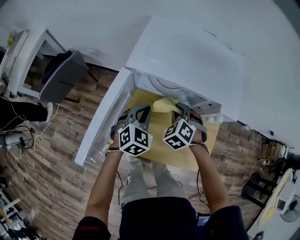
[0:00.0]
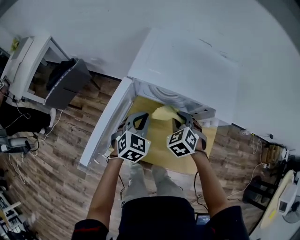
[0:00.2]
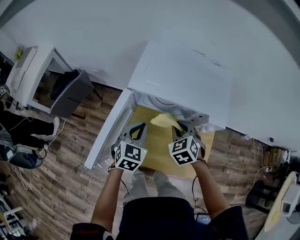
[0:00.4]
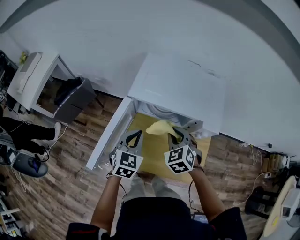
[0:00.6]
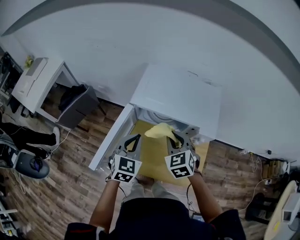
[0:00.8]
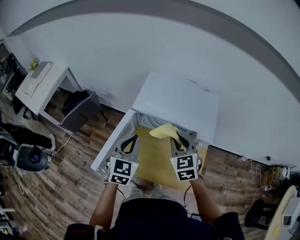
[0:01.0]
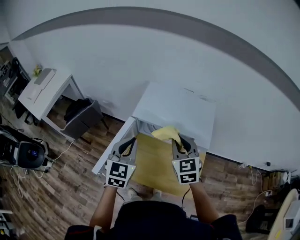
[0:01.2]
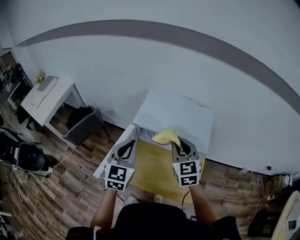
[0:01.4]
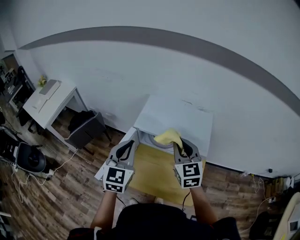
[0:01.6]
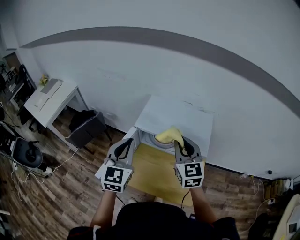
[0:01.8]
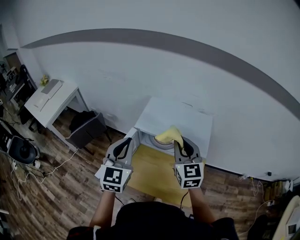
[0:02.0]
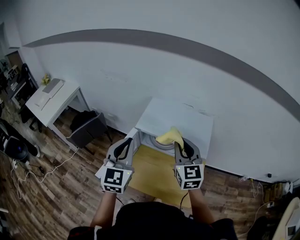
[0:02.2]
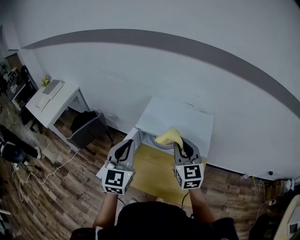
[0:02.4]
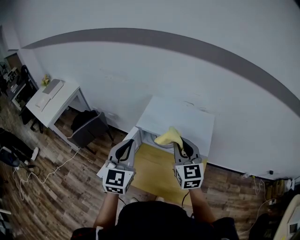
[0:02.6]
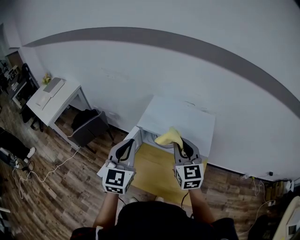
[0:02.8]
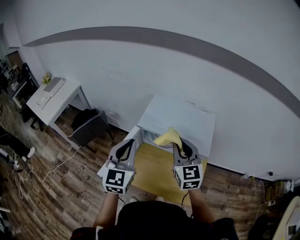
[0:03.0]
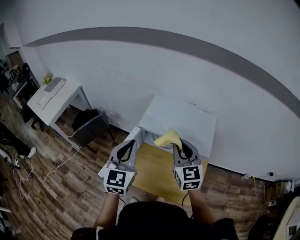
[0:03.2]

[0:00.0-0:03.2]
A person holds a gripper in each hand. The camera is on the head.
0:00.0 to 0:01.6: Both grippers move upward, roughly 30 cm. The left gripper rotates approximately 30 degrees; the right gripper angles its fingers upward, by some 40 degrees.
0:01.6 to 0:03.2: The grippers make only small movements.

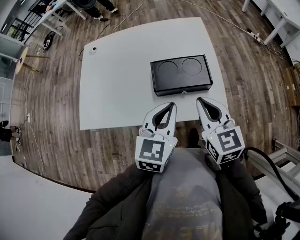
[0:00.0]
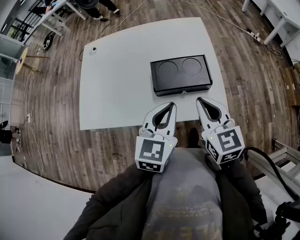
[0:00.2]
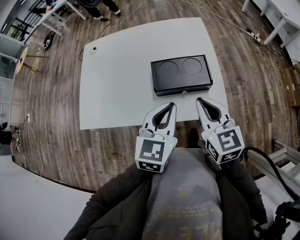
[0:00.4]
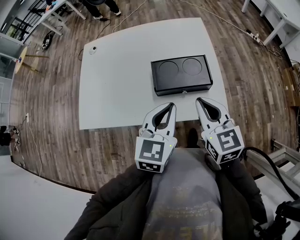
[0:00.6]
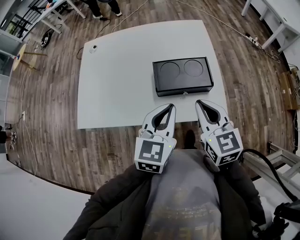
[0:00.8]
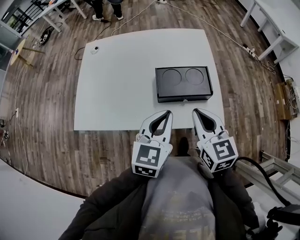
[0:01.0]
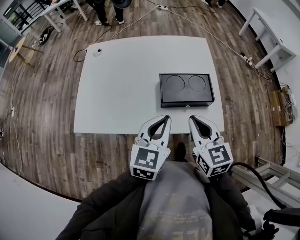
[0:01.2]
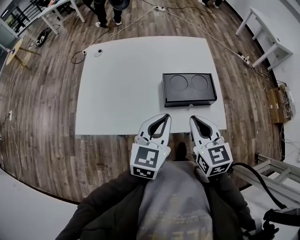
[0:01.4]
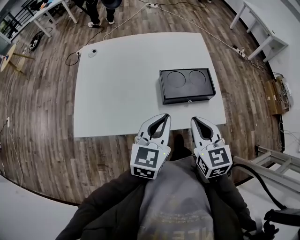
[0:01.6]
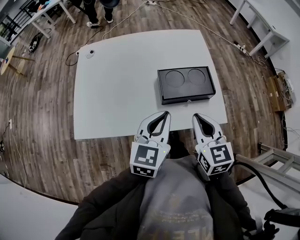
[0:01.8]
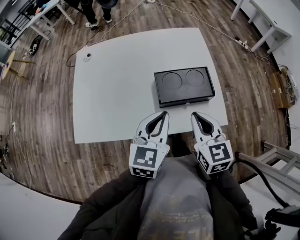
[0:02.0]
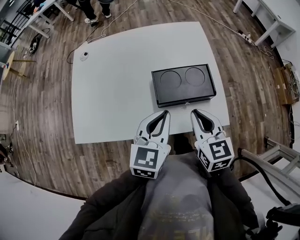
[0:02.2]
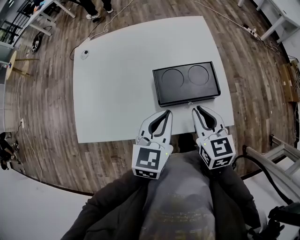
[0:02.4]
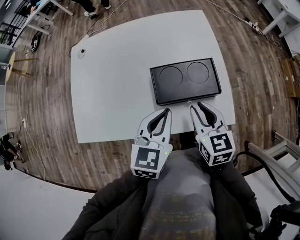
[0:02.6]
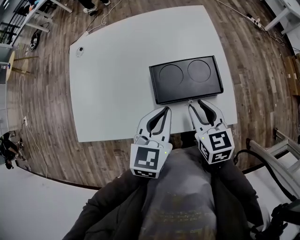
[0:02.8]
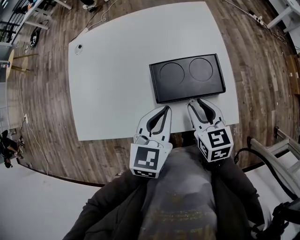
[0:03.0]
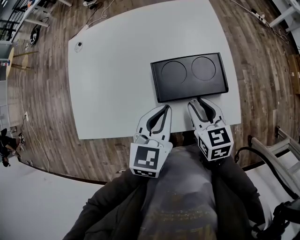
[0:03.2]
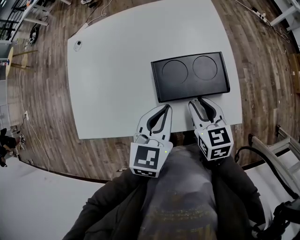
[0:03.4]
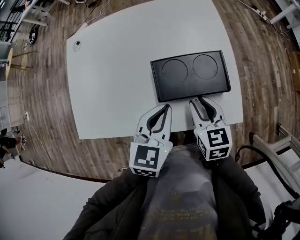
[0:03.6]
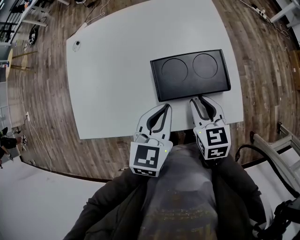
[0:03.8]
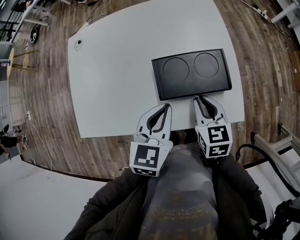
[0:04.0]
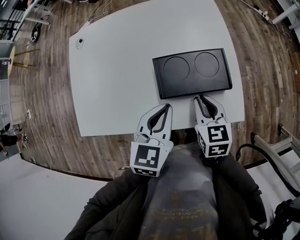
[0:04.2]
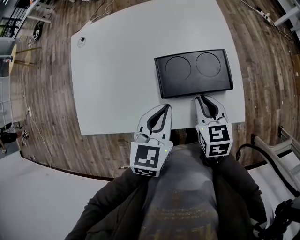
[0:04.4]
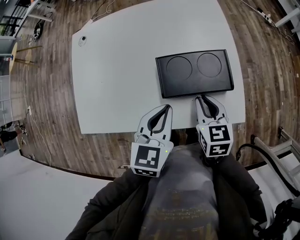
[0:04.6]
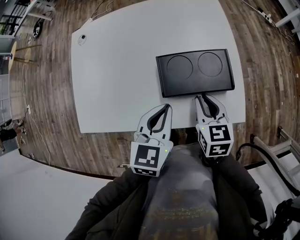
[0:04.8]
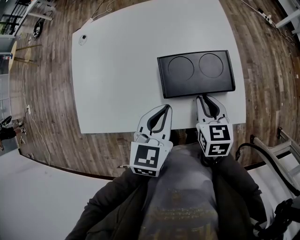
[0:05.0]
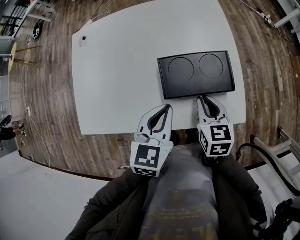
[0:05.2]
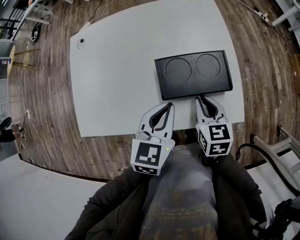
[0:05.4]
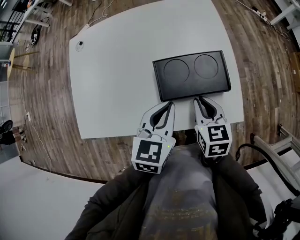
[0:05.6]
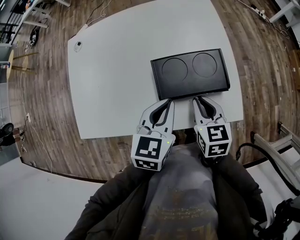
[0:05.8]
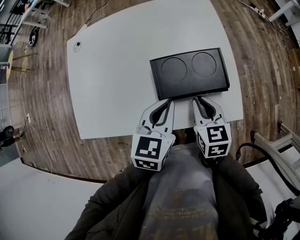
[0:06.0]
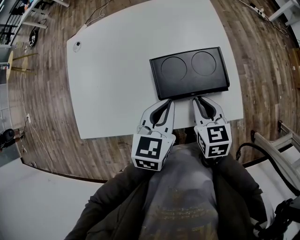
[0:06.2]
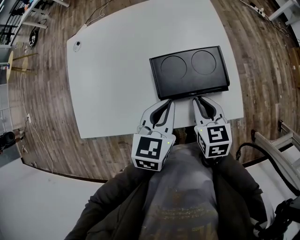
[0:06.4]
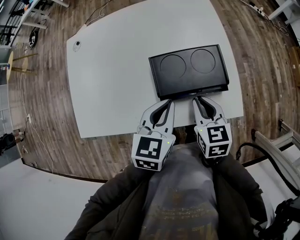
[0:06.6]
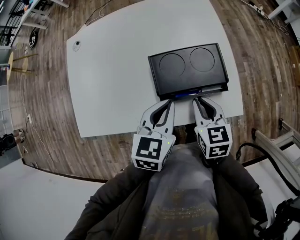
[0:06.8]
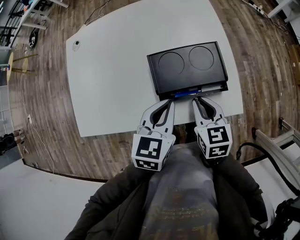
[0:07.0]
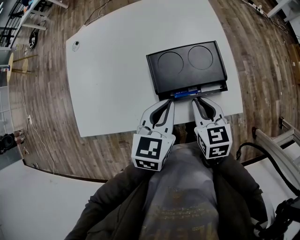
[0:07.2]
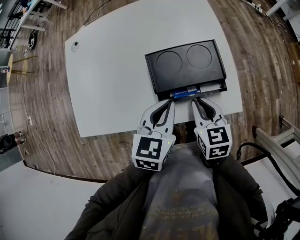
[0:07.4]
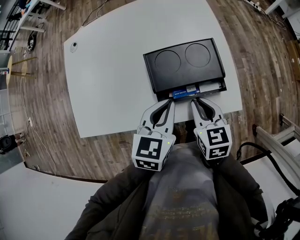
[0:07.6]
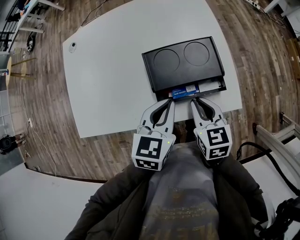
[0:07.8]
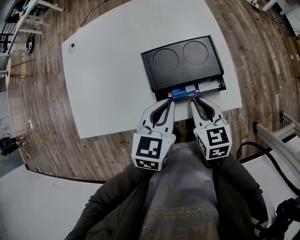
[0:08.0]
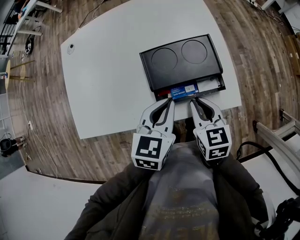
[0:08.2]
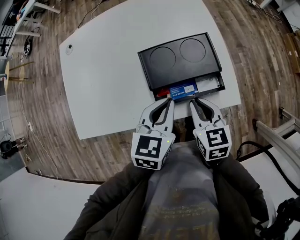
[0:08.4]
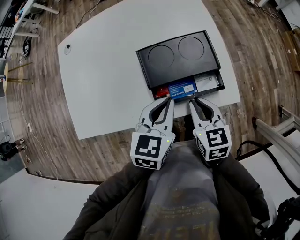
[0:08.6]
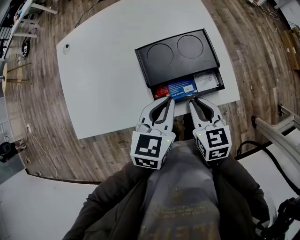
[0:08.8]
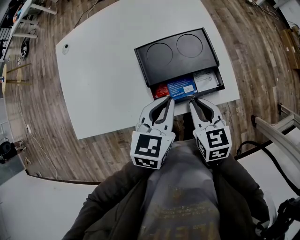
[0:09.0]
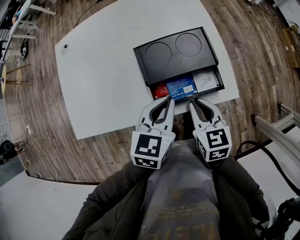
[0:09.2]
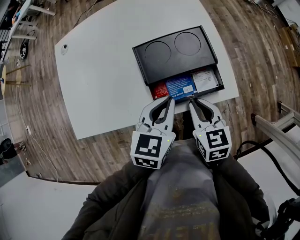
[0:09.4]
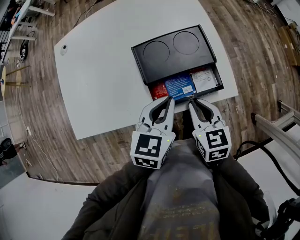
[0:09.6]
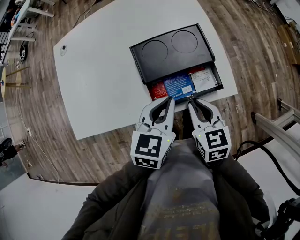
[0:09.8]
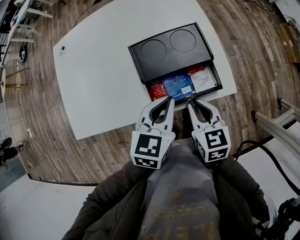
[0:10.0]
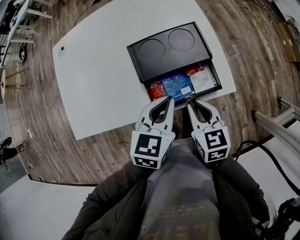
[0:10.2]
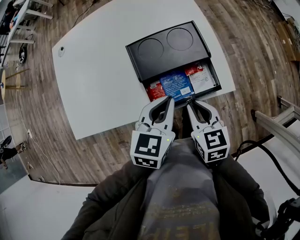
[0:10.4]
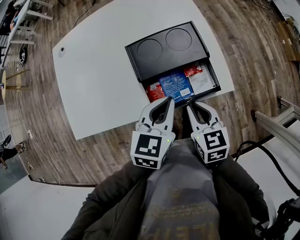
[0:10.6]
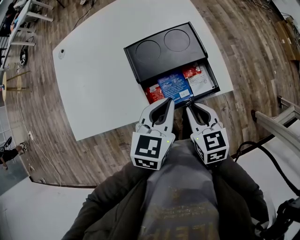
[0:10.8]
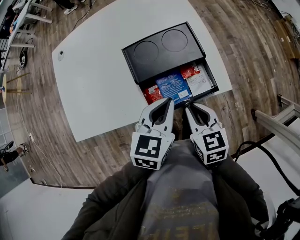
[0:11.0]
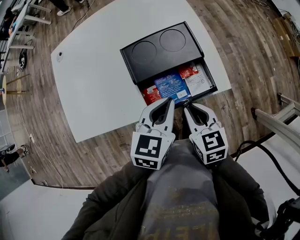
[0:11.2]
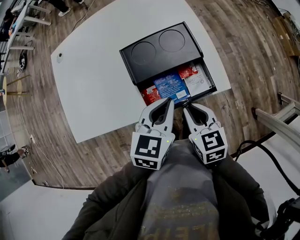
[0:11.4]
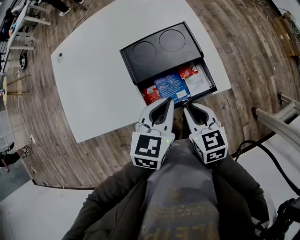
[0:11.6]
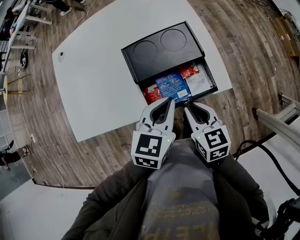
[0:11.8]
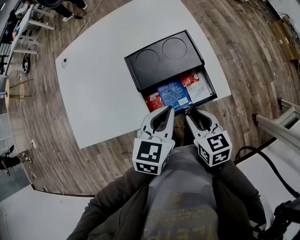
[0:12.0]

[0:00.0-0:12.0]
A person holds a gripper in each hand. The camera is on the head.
0:00.0 to 0:01.6: The grippers both shift to the left by approximately 5 cm.
0:01.6 to 0:03.0: The left gripper travels forward and downward by some 10 cm. The right gripper is displaced downward and forward by about 15 cm, and opens.
0:03.0 to 0:07.6: The grippers stay close to where they were, moving slightly.
0:07.6 to 0:10.4: The grippers make only small movements.
0:10.4 to 0:12.0: The grippers make only small movements.

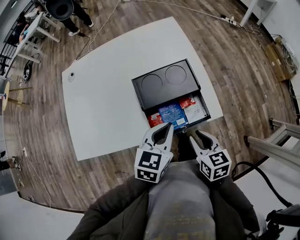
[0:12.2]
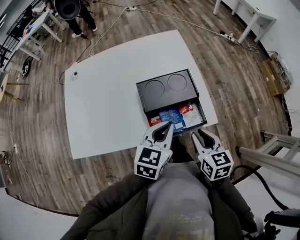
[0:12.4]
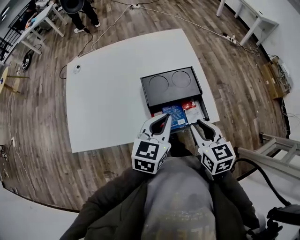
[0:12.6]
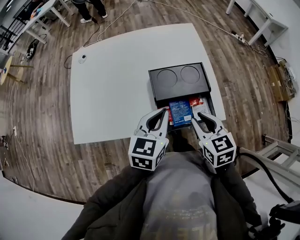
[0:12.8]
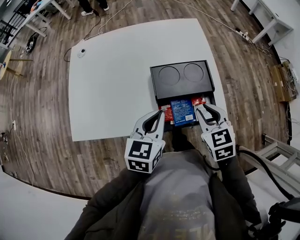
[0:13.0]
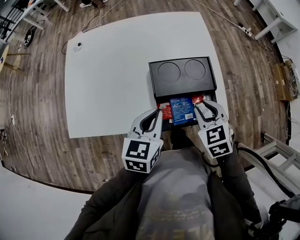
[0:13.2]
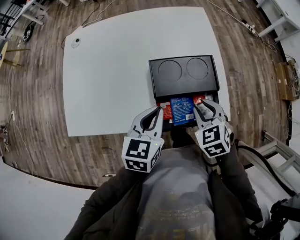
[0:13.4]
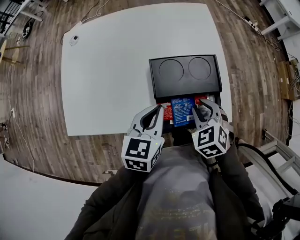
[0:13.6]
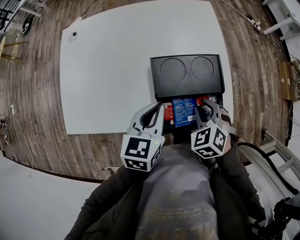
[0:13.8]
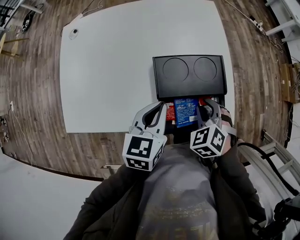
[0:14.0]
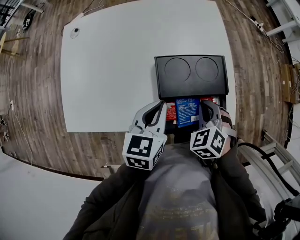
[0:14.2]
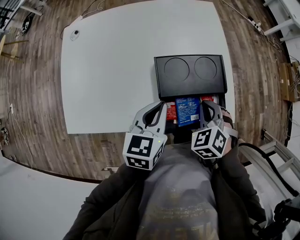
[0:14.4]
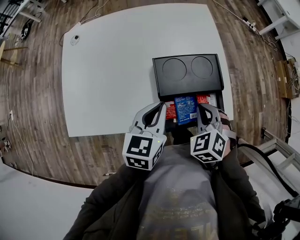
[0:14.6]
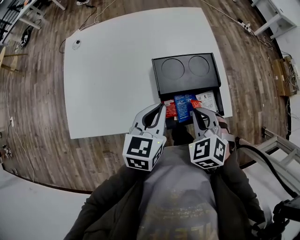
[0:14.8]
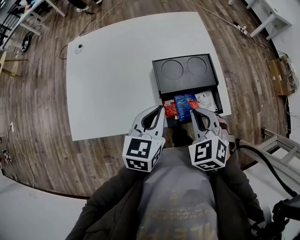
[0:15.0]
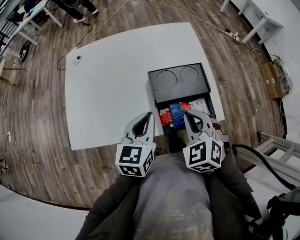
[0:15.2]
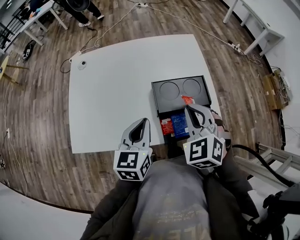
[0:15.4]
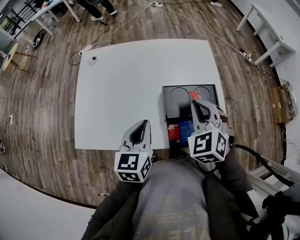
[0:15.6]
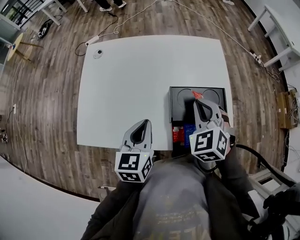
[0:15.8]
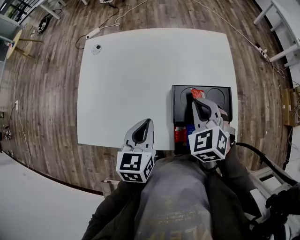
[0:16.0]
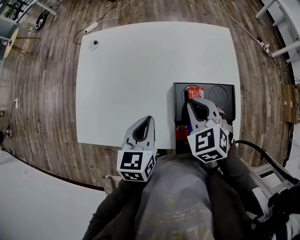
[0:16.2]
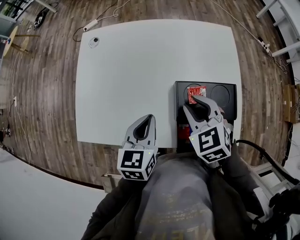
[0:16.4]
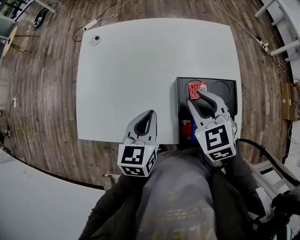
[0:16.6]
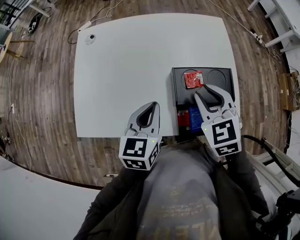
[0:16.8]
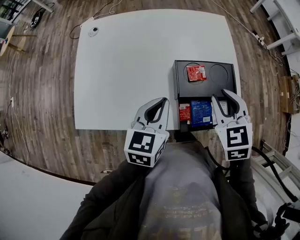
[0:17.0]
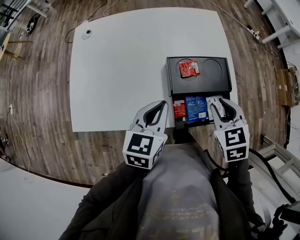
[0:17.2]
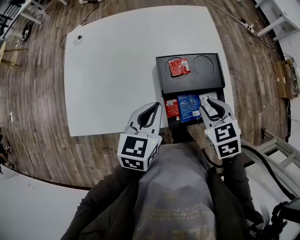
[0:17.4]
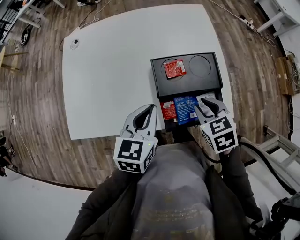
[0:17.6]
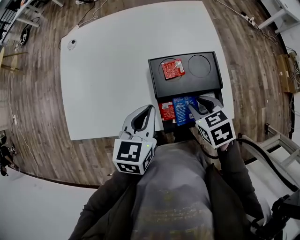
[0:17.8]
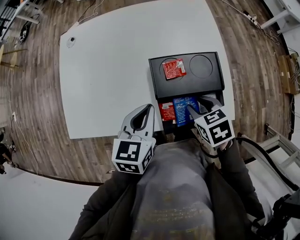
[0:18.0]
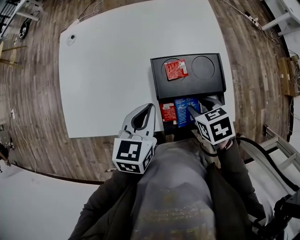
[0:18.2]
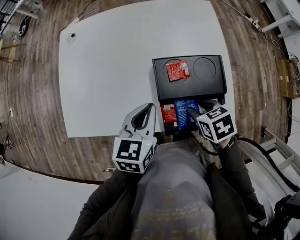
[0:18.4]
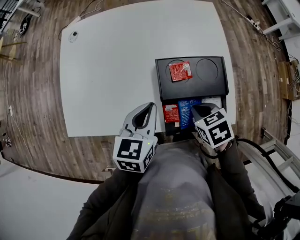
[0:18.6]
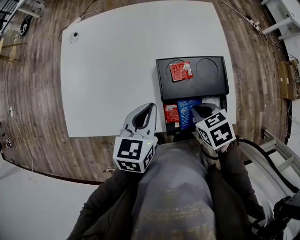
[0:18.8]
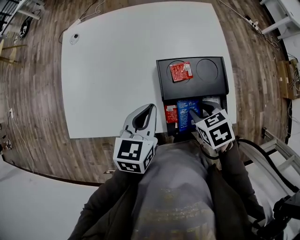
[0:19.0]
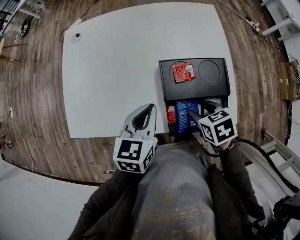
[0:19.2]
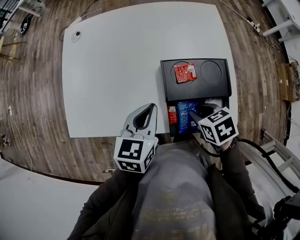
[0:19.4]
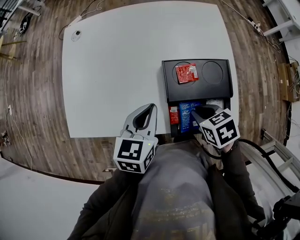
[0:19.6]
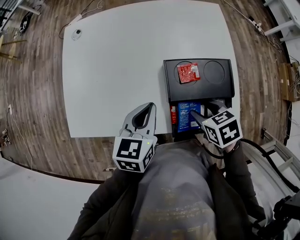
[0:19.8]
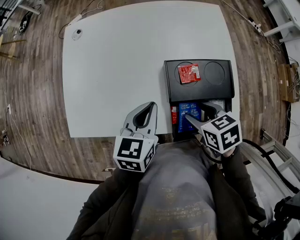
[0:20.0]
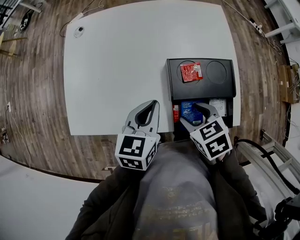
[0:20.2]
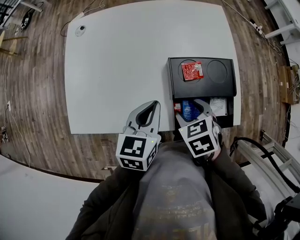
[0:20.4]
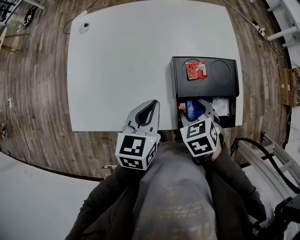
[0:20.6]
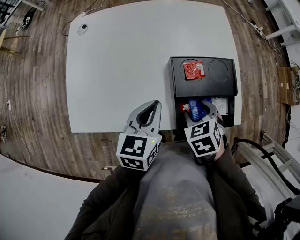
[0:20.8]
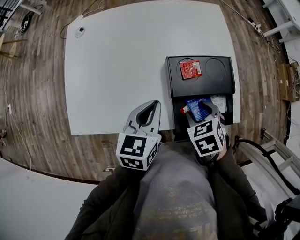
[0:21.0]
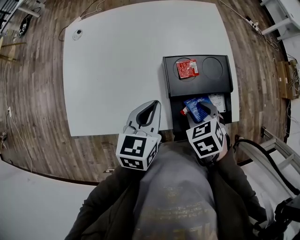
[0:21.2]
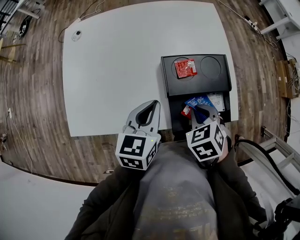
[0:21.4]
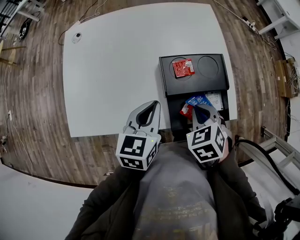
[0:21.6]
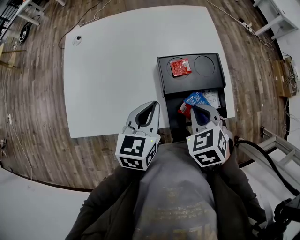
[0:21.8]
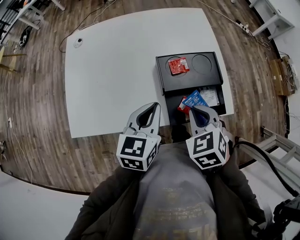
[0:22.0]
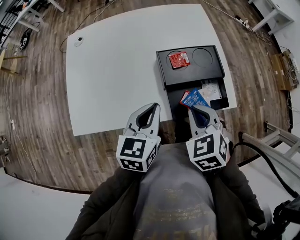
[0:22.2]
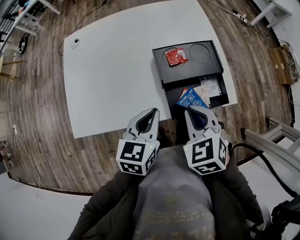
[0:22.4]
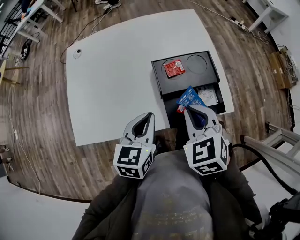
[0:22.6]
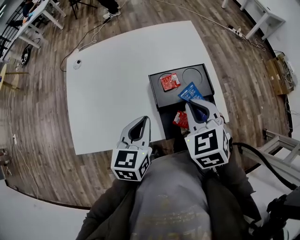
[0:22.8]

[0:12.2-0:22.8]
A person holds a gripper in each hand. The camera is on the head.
0:12.2 to 0:13.8: The left gripper moves to the left and forward, approximately 10 cm; the right gripper travels forward by approximately 10 cm, and rolls counterclockwise, seen from behind, by some 60 degrees.
0:13.8 to 0:15.2: The right gripper travels upward and to the left by about 10 cm, and closes, while the left gripper changes place by roughly 5 cm.
0:15.2 to 0:16.8: The right gripper heads forward, covering approximately 10 cm, and opens up. The left gripper is displaced forward by some 5 cm.
0:16.8 to 0:18.2: The right gripper is displaced downward, backward and to the right by some 15 cm, and changes its angle by about 40 degrees; the left gripper heads to the right, covering some 5 cm.
0:18.2 to 0:19.8: The right gripper closes, then opens again.
0:21.2 to 0:22.8: The right gripper is displaced upward by about 15 cm, changes its angle by approximately 30 degrees, and closes up.
